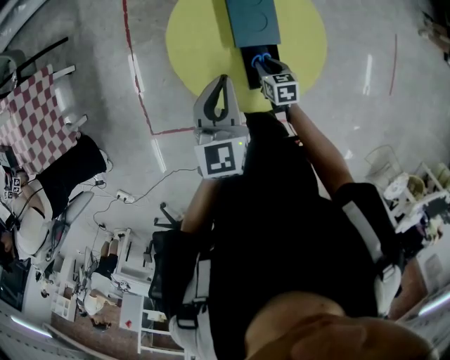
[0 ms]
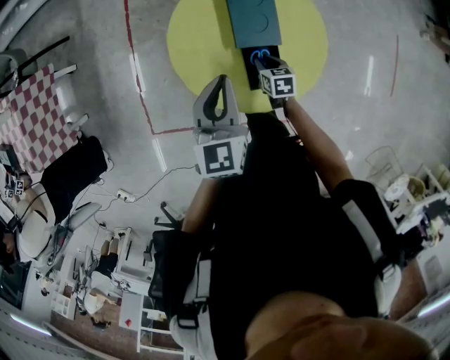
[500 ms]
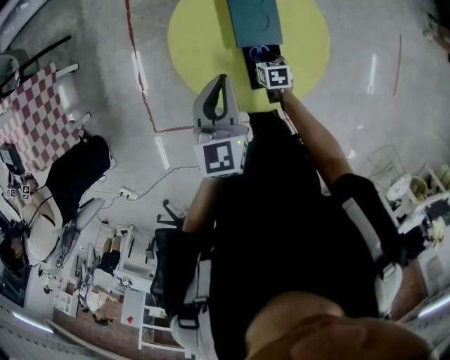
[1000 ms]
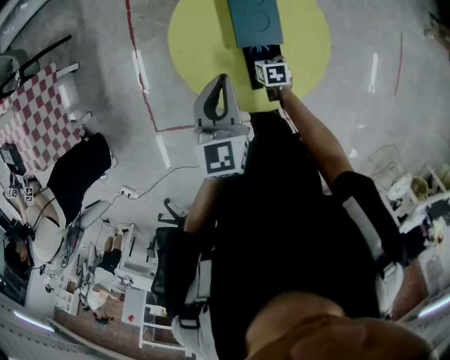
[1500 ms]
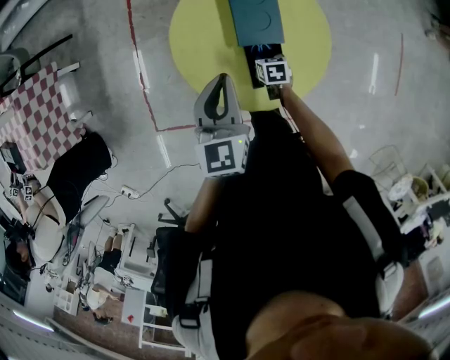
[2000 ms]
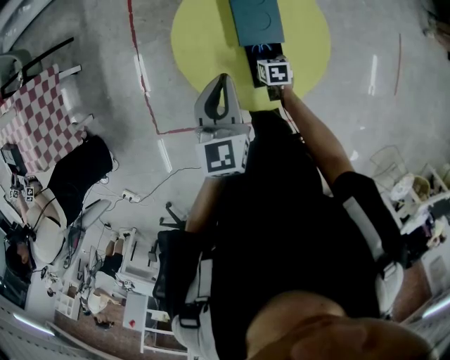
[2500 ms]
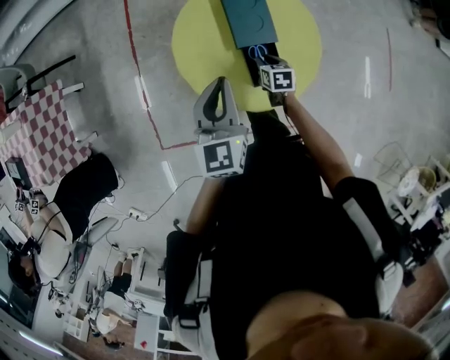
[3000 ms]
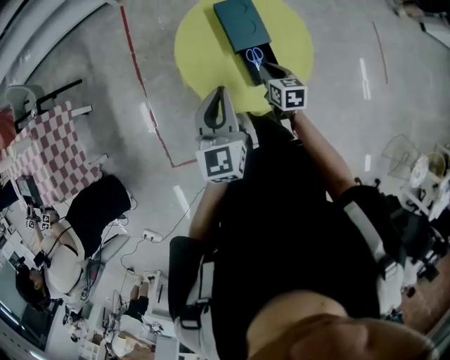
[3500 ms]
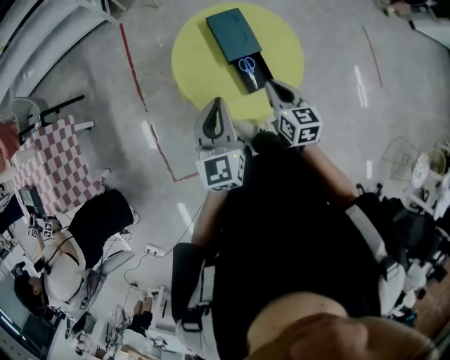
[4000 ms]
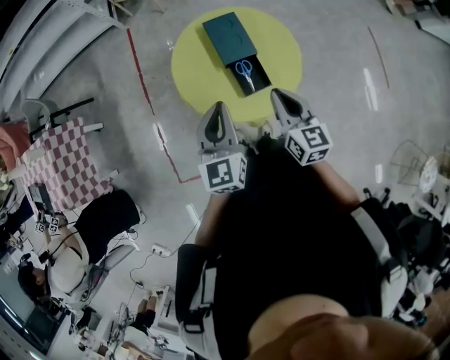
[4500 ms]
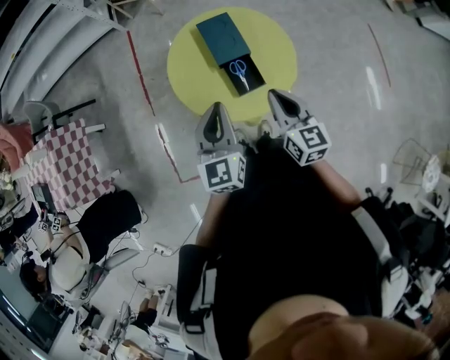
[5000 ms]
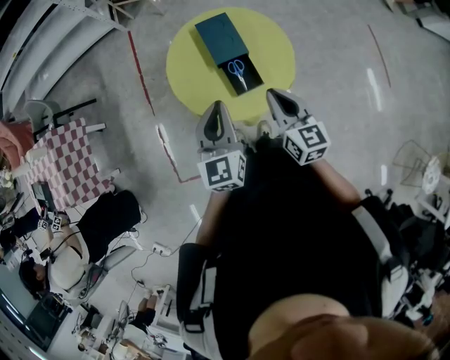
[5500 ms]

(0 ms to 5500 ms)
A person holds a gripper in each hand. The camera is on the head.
0 ms - 2000 ms: The right gripper goes some 5 cm downward.
2000 ms - 3500 ms: The left gripper is displaced backward and upward by approximately 10 cm, while the right gripper shifts some 20 cm upward, and turns by about 20 degrees.
3500 ms - 5500 ms: The right gripper is displaced upward and backward by approximately 20 cm, and swivels roughly 30 degrees; the left gripper is displaced to the right and backward by about 10 cm.

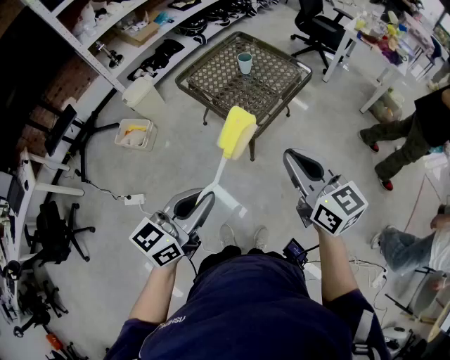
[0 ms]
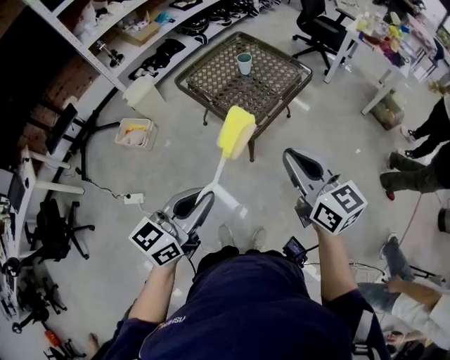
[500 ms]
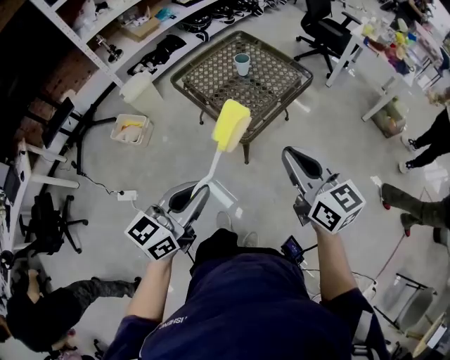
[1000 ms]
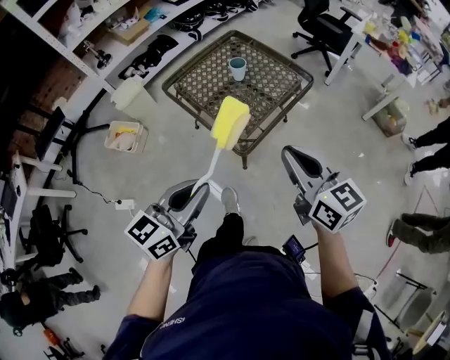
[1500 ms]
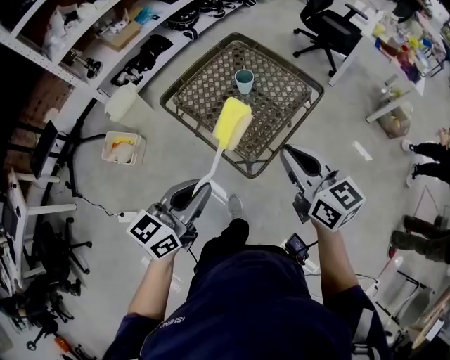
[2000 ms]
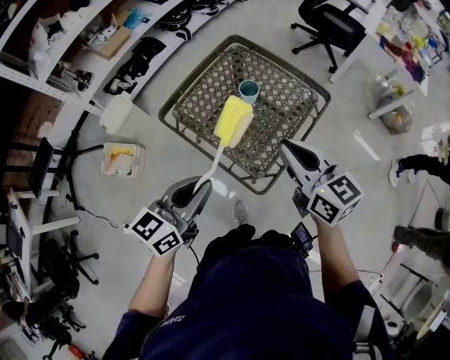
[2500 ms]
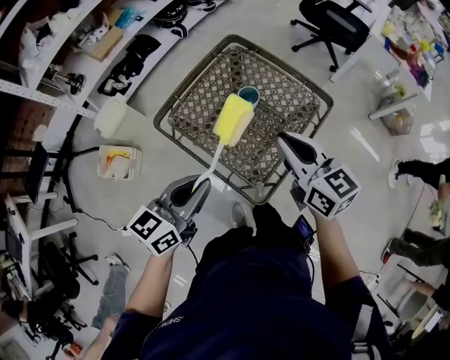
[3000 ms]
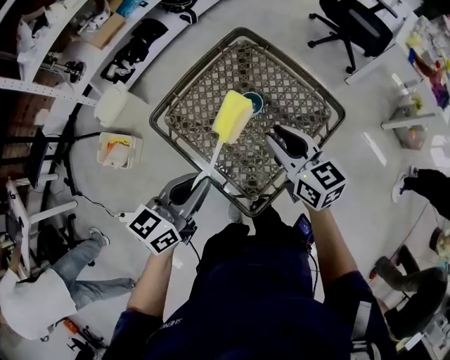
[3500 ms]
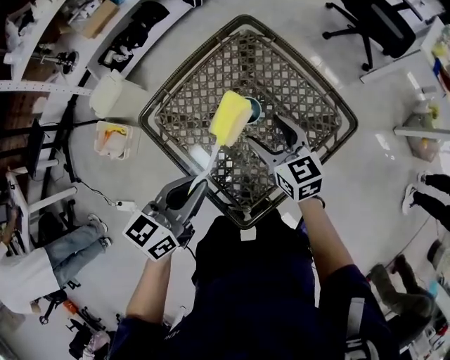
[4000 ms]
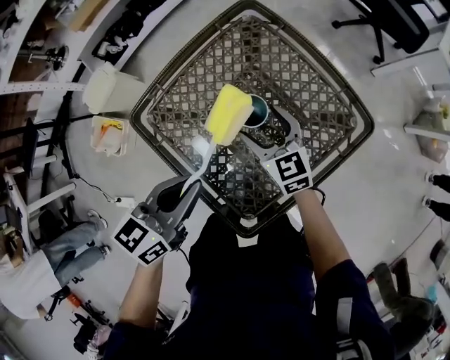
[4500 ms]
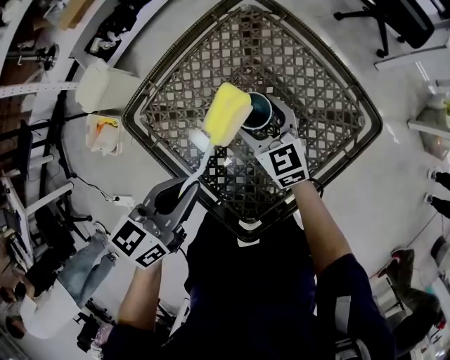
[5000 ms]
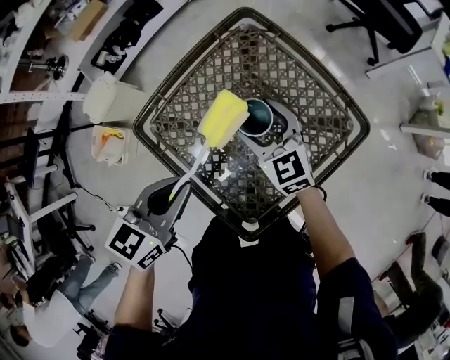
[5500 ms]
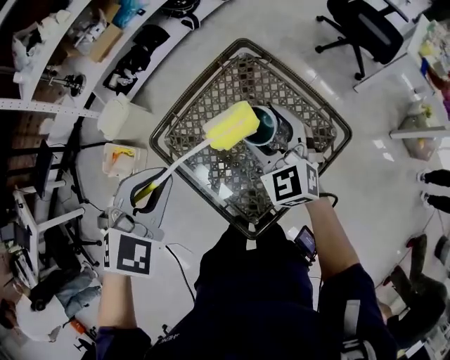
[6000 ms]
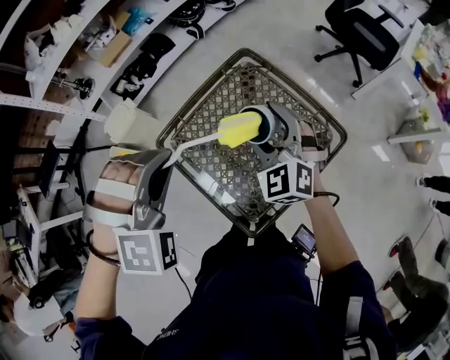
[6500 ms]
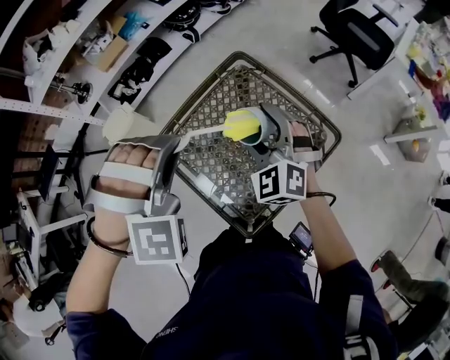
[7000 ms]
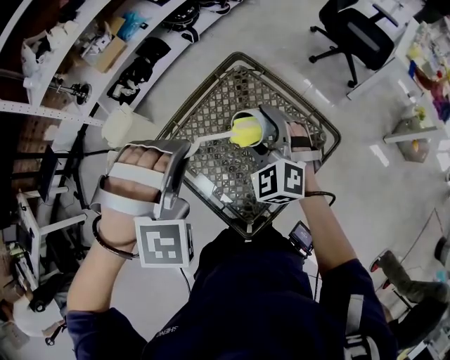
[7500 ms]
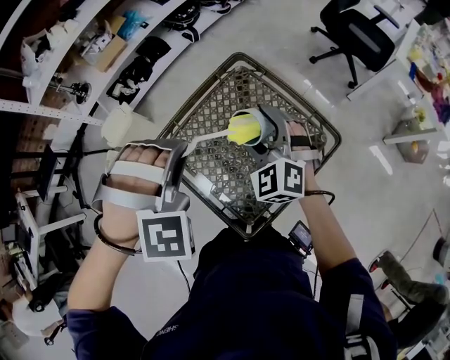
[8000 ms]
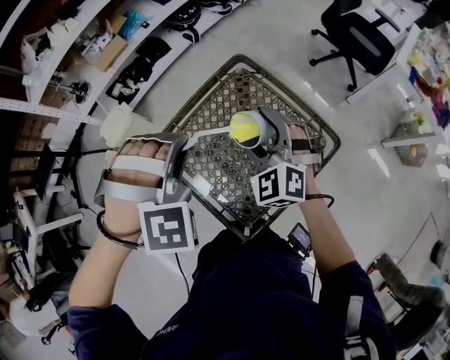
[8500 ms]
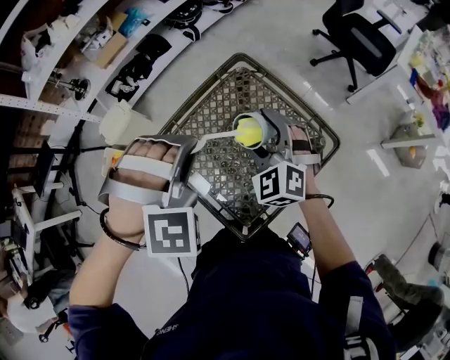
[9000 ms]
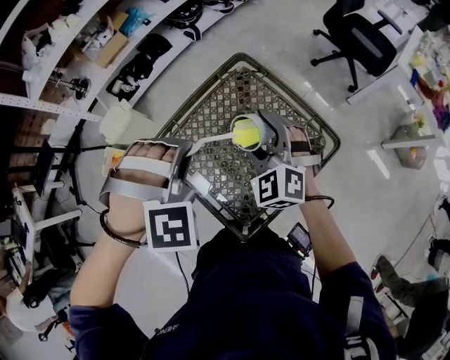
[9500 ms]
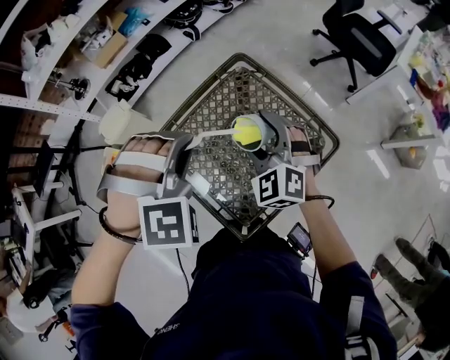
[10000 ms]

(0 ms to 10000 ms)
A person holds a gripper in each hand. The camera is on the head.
0 ms - 2000 ms: The two grippers go about 30 cm forward.
2000 ms - 4000 ms: The two grippers go approximately 35 cm forward and downward. The right gripper opens.
4000 ms - 6000 ms: The right gripper shifts roughly 10 cm upward, and rotates some 40 degrees. Meanwhile the left gripper heads upward, forward and to the left, covering roughly 15 cm, and rolls clockwise, seen from behind, by some 60 degrees.
6000 ms - 8000 ms: The left gripper is displaced to the right by roughly 5 cm, and rolls clockwise, seen from behind, by about 50 degrees.
8000 ms - 10000 ms: The grippers make only small movements.

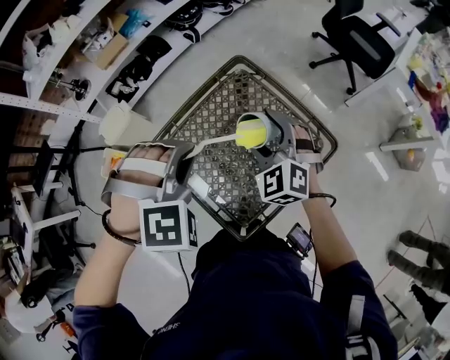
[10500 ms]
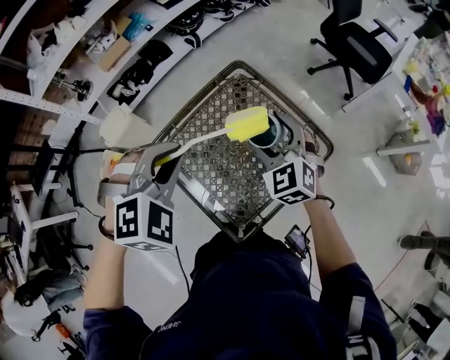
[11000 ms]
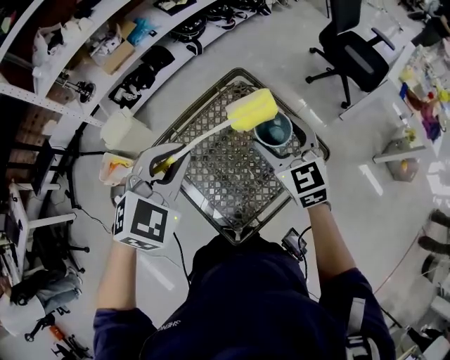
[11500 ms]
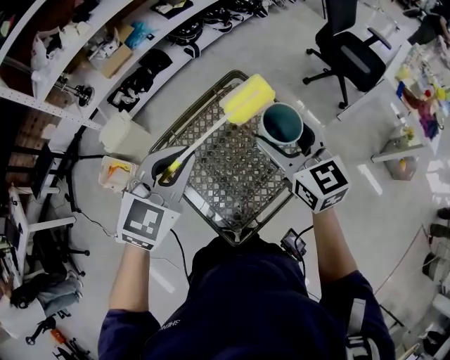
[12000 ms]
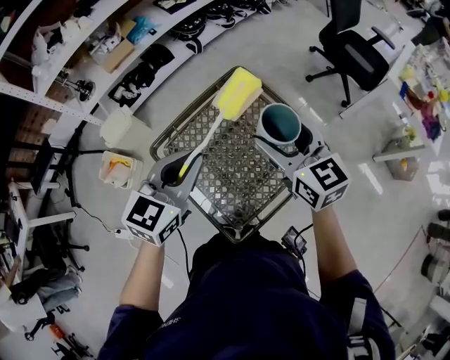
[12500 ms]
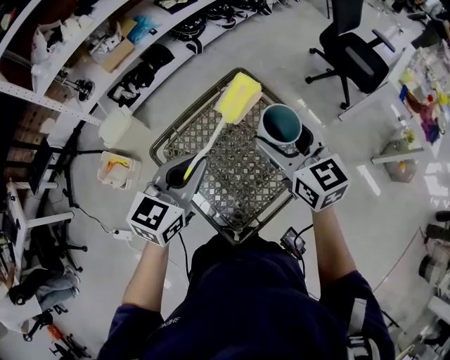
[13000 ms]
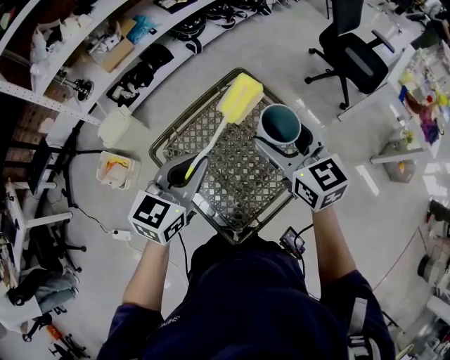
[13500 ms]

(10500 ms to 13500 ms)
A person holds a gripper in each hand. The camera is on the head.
10500 ms - 12000 ms: The right gripper is displaced upward by roughly 10 cm, and rolls clockwise, seen from behind, by approximately 40 degrees, while the left gripper ends up about 5 cm from where it was, and rolls counterclockwise, seen from behind, by roughly 50 degrees.
12000 ms - 13500 ms: The left gripper moves downward, roughly 5 cm, and rotates about 20 degrees.

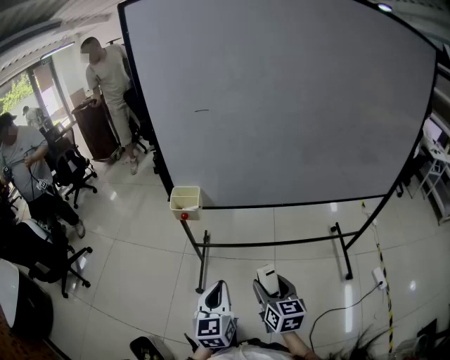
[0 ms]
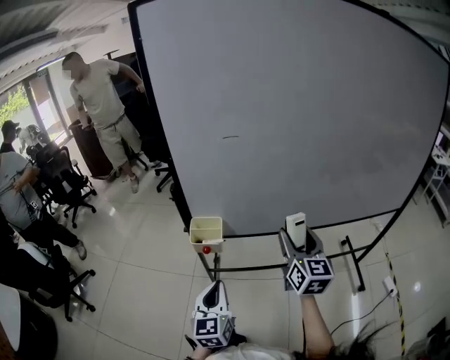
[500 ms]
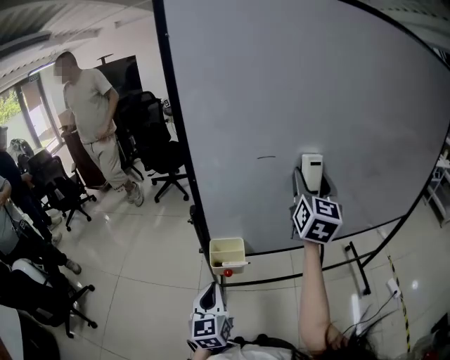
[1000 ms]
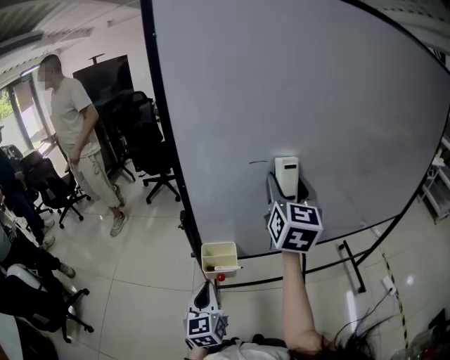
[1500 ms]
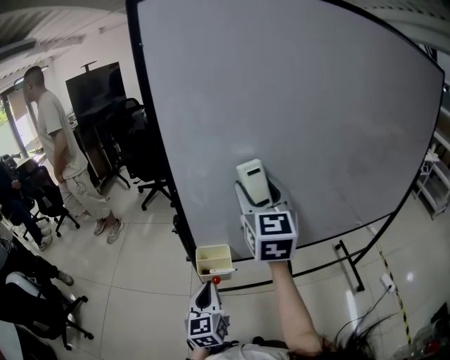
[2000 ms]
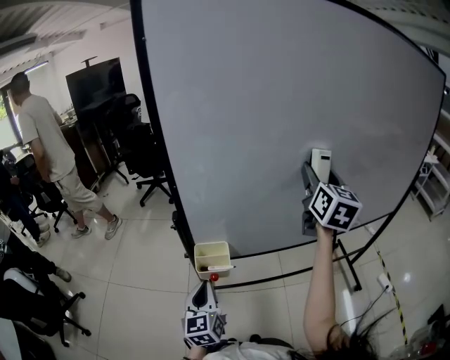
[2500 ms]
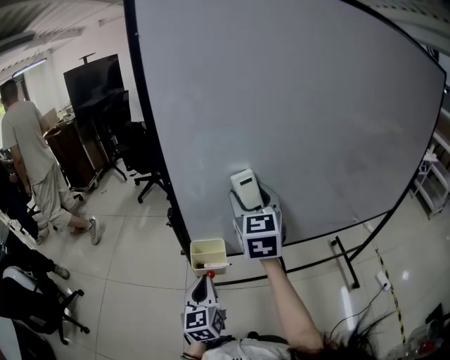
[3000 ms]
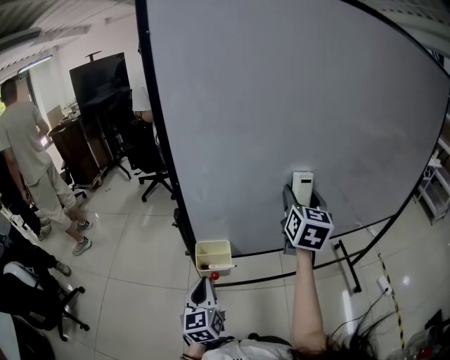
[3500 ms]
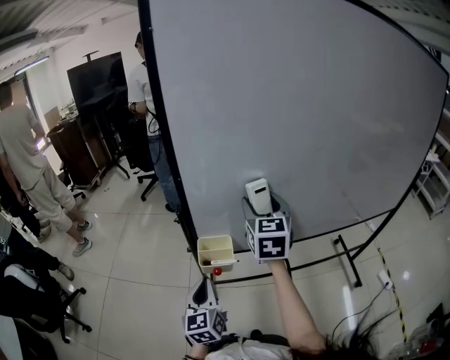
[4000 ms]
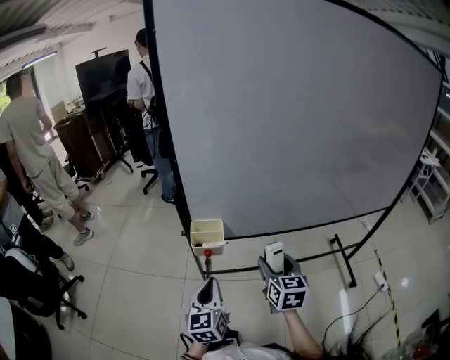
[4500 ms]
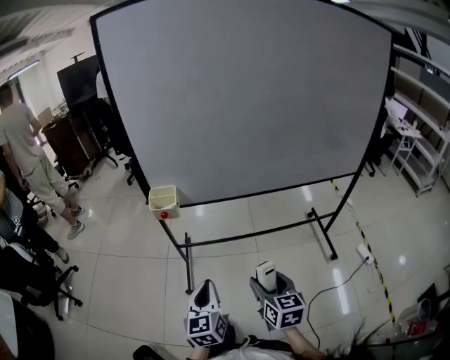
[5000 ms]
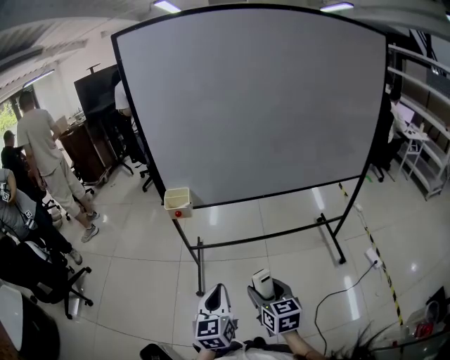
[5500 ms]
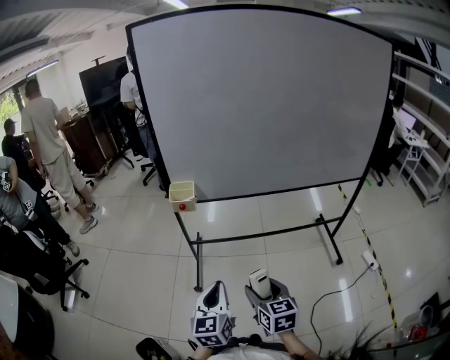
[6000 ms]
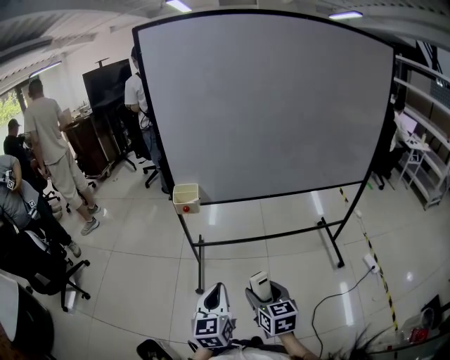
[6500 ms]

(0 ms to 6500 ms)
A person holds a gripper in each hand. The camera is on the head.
0 ms - 2000 ms: The right gripper is displaced forward, upward and to the left by some 50 cm, and rotates approximately 40 degrees. Meanwhile the left gripper moves forward and to the left, approximately 25 cm.
2000 ms - 4500 ms: The right gripper goes some 30 cm downward and backward, and changes its angle by some 30 degrees; the left gripper travels backward by some 10 cm.
4500 ms - 6500 ms: The right gripper heads backward, covering about 30 cm. Meanwhile the left gripper goes approximately 30 cm backward and to the right.

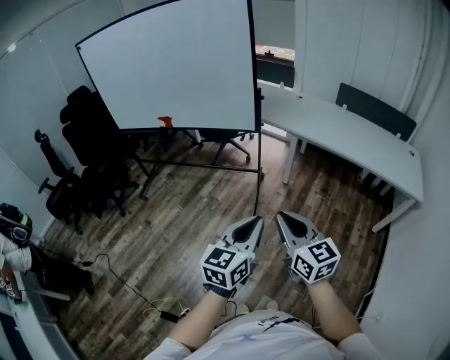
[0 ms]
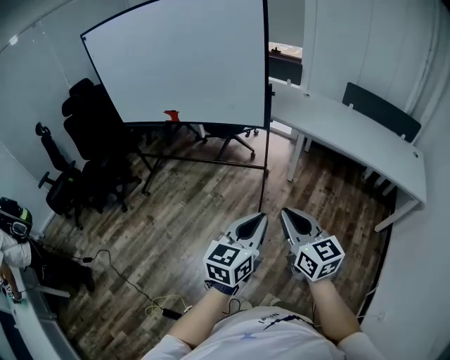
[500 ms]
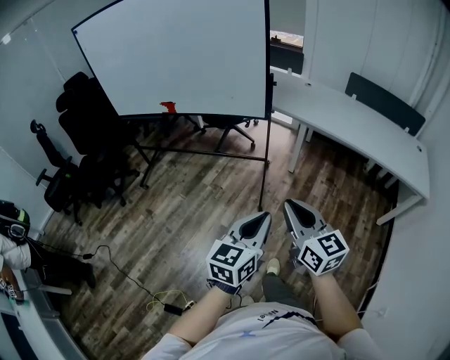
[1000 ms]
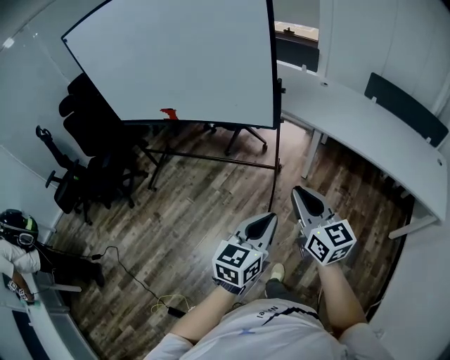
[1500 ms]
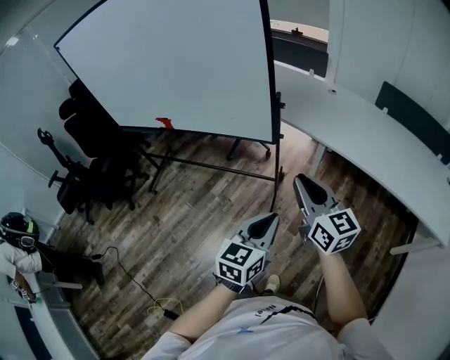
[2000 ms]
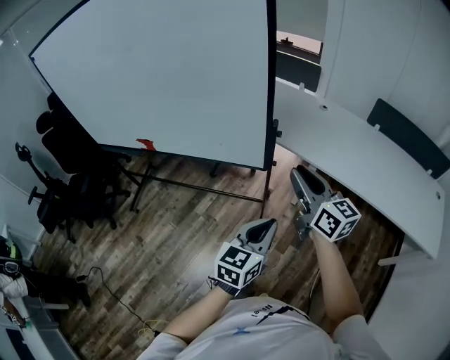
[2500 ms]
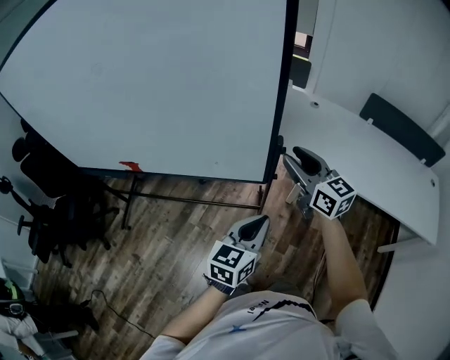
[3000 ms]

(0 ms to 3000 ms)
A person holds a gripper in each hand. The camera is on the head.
0 ms - 1500 ms: The grippers both shift forward by about 20 cm.
1500 ms - 3000 ms: Both grippers travel together forward, about 40 cm. The right gripper opens up.
